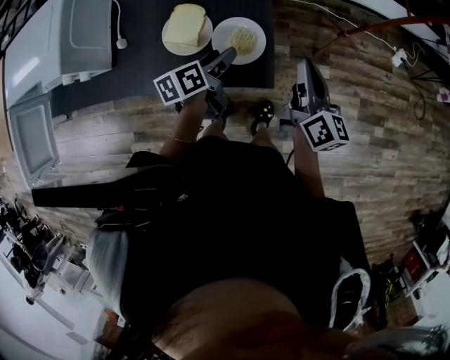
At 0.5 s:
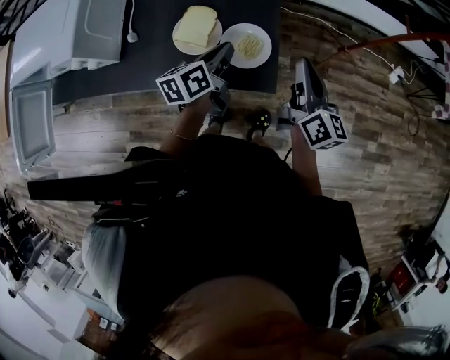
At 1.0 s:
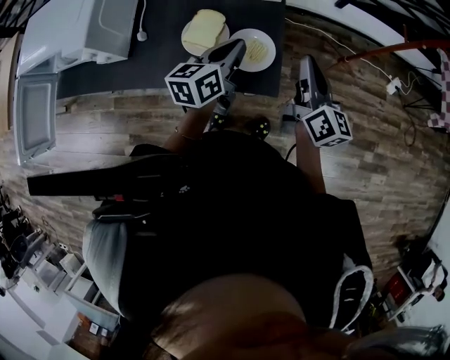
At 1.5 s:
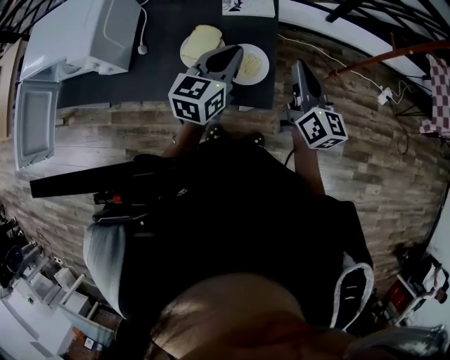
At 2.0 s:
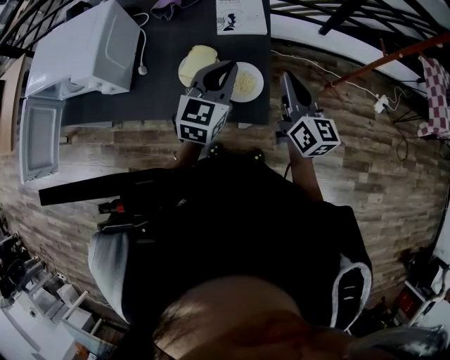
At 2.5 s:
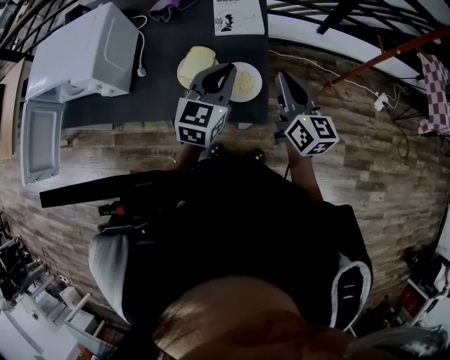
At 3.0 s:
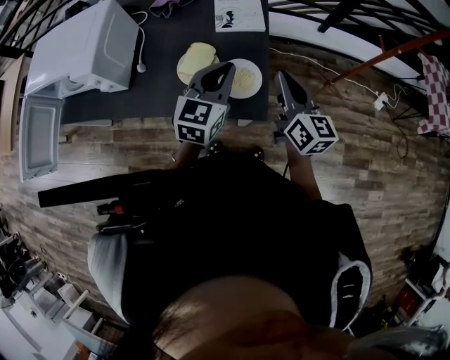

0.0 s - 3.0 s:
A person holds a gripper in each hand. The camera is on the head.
0.0 s - 1.5 s: The right gripper moves upward, roughly 5 cm; the left gripper moves upward, roughly 15 cm, rotates around the line of its fingers by approximately 40 degrees, clockwise from behind, and closes.
1.5 s - 3.0 s: The grippers stay close to where they were, moving slightly.

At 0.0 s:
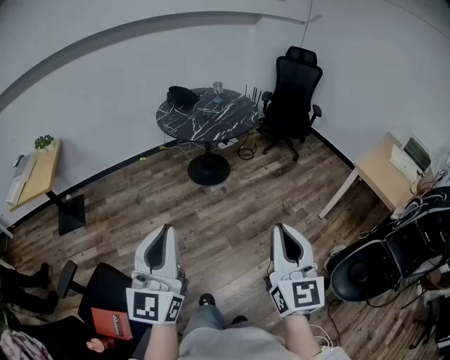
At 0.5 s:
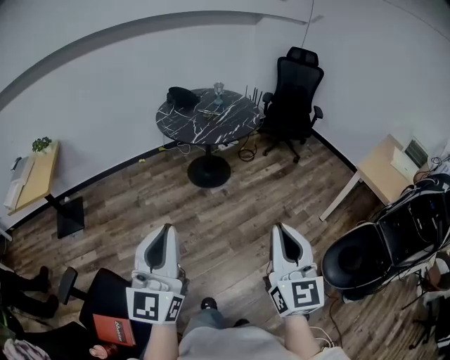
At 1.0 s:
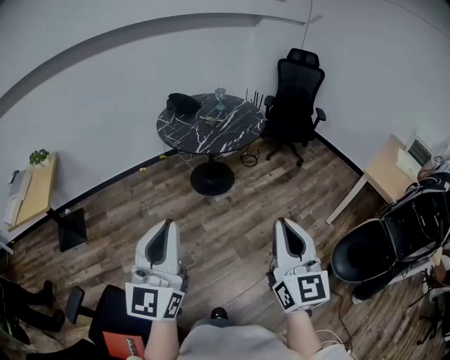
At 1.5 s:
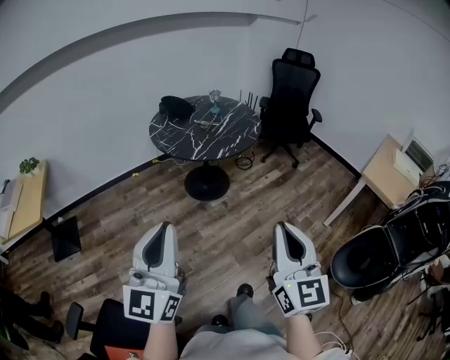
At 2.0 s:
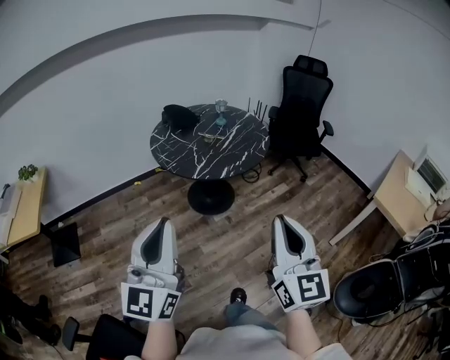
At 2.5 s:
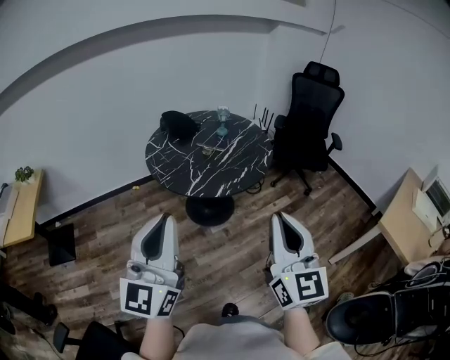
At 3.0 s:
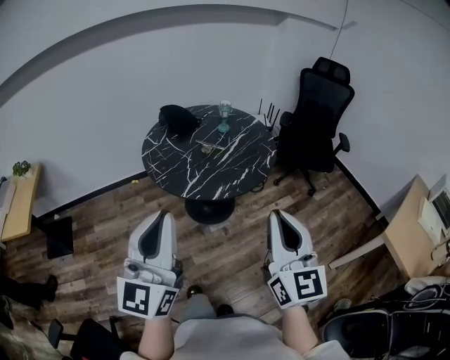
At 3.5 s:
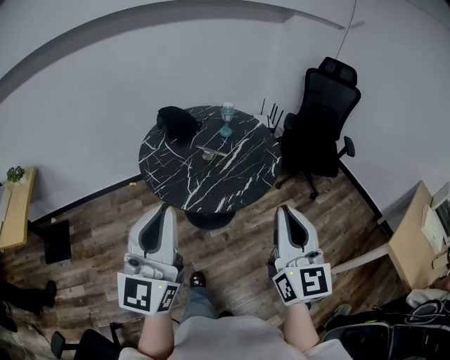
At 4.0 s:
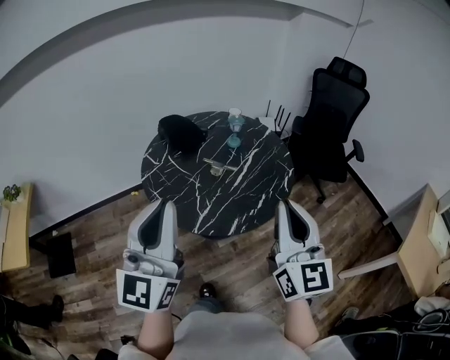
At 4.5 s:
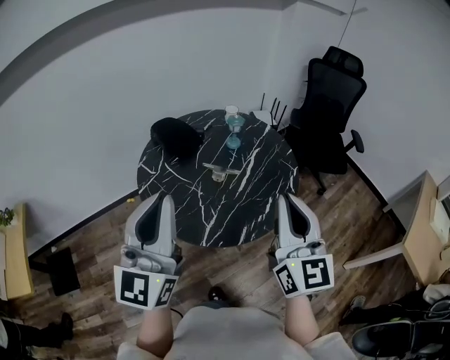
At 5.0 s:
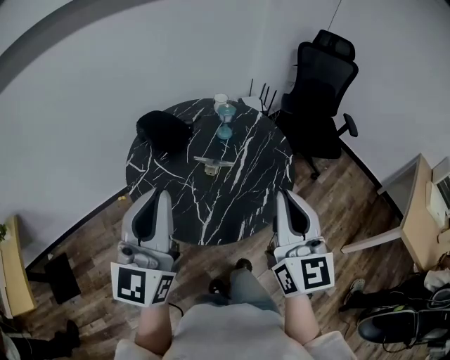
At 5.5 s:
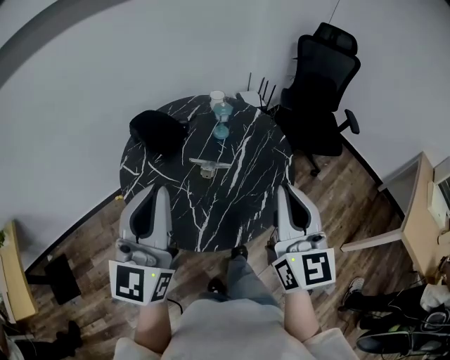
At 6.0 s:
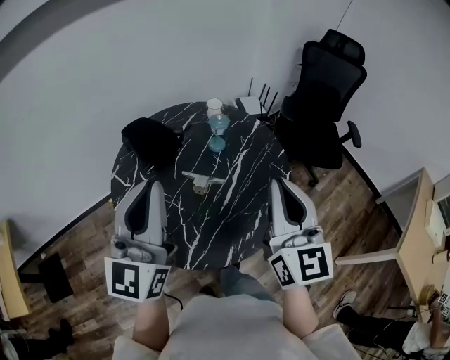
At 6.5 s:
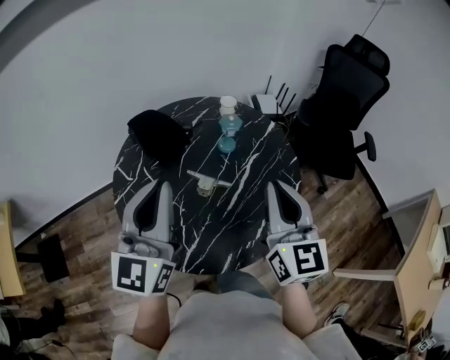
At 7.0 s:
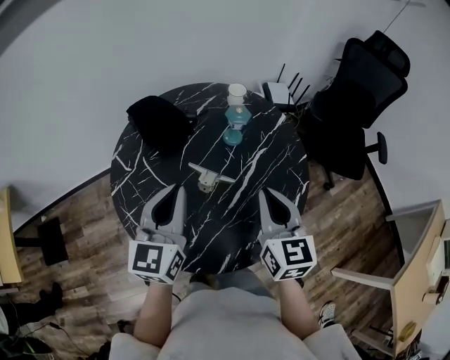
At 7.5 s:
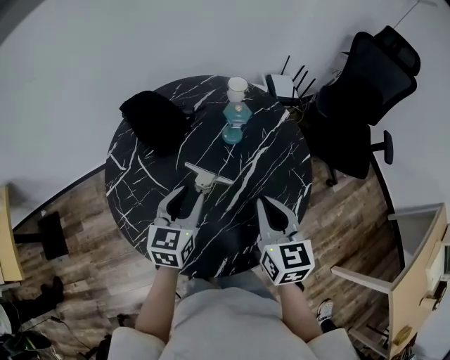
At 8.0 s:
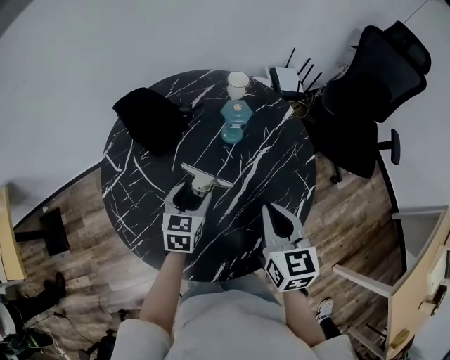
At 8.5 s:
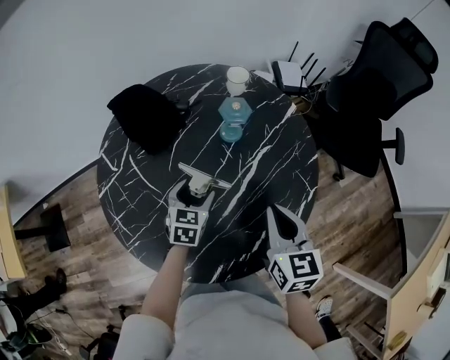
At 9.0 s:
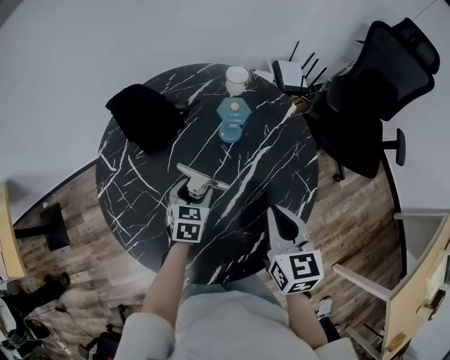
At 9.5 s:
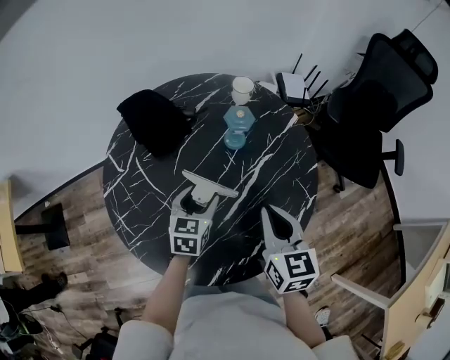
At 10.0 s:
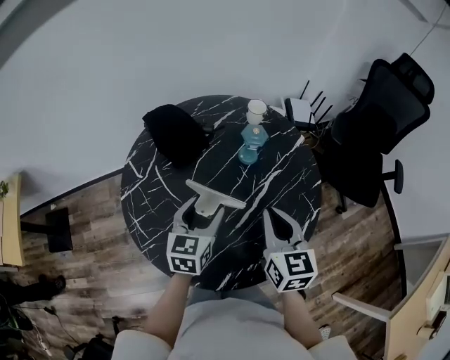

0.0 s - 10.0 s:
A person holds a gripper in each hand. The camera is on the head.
0.0 s - 2.0 s: The two grippers go about 30 cm forward.
2.0 s - 4.0 s: The grippers both shift forward by some 40 cm.
4.0 s - 6.0 s: The two grippers go approximately 25 cm forward.
6.0 s - 8.0 s: The right gripper travels downward and forward by roughly 25 cm, and points its fingers some 30 degrees further downward, while the left gripper travels downward and forward by approximately 40 cm, tips its fingers downward by roughly 50 degrees, and opens.
8.0 s - 10.0 s: The left gripper shifts about 10 cm upward.

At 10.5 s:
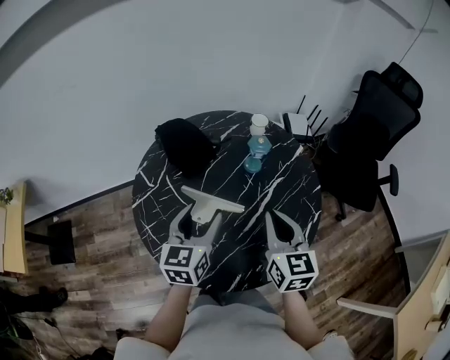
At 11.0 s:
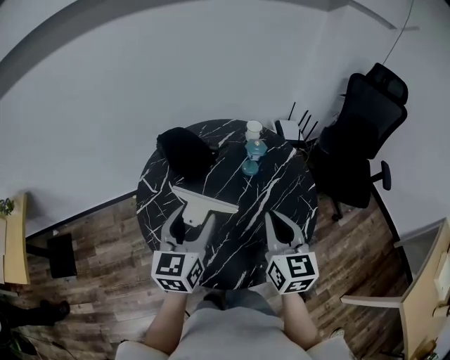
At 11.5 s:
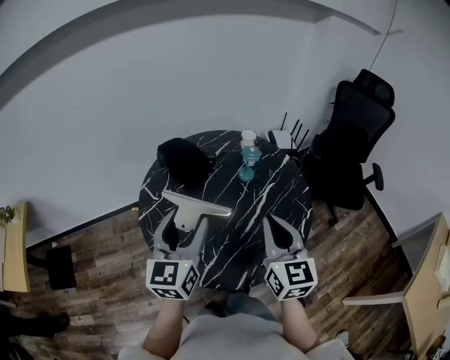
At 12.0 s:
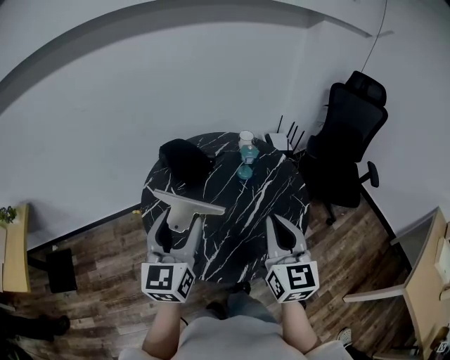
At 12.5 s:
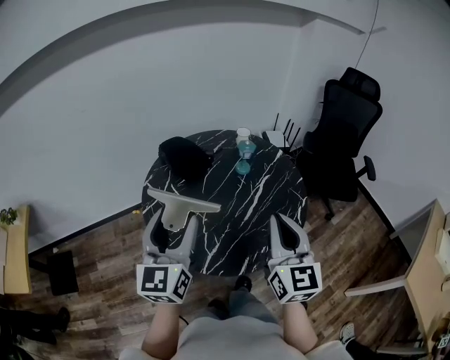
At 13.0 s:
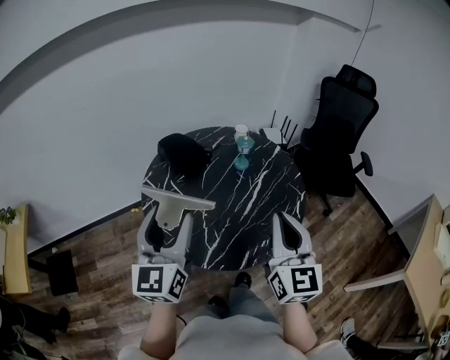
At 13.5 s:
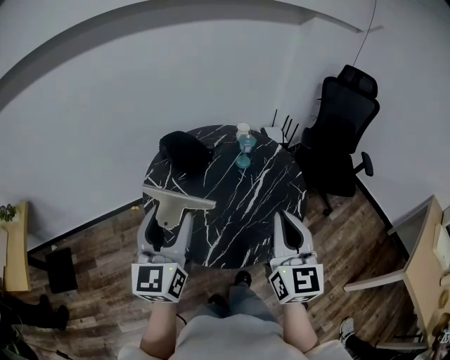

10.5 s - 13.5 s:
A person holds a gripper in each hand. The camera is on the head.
10.5 s - 12.0 s: The right gripper is displaced backward and upward by approximately 15 cm; the left gripper heads upward, backward and to the left, covering roughly 20 cm.
12.0 s - 13.5 s: The two grippers go approximately 5 cm backward.

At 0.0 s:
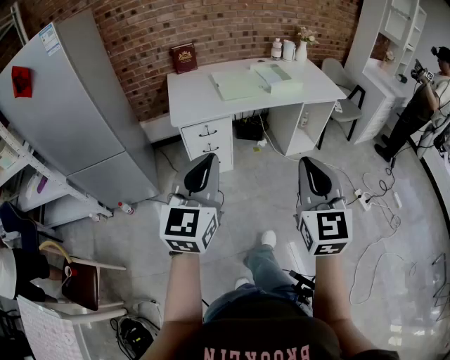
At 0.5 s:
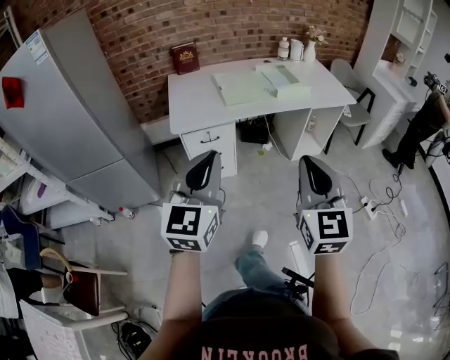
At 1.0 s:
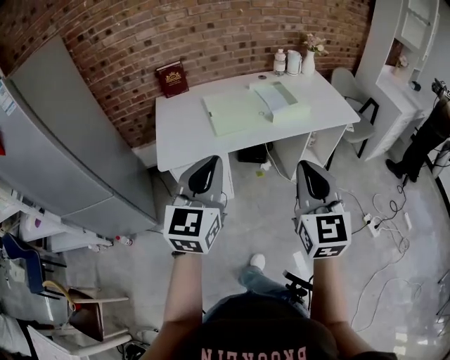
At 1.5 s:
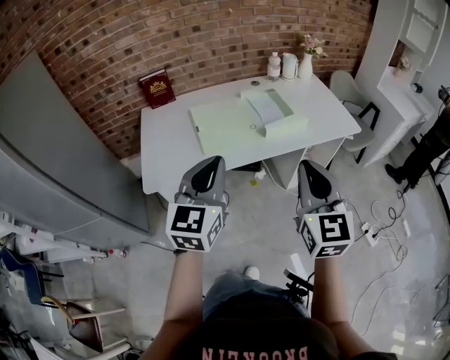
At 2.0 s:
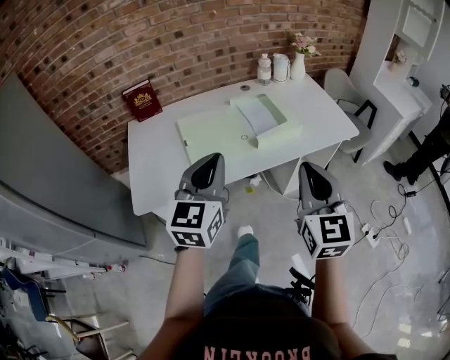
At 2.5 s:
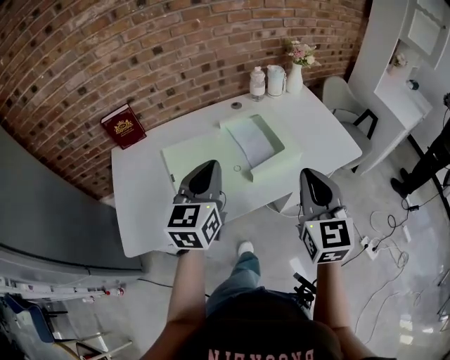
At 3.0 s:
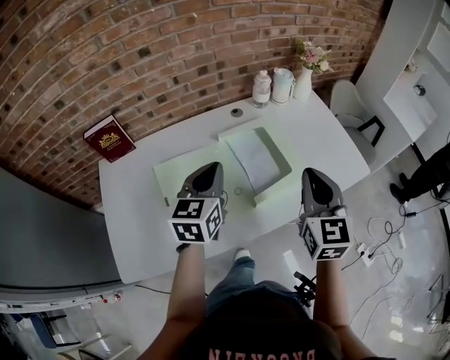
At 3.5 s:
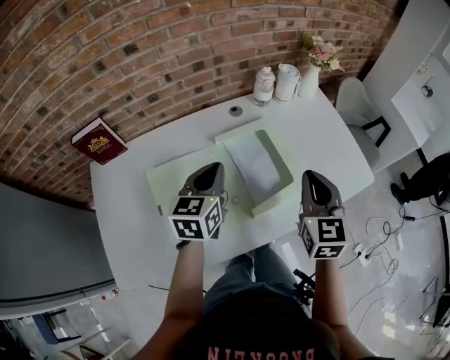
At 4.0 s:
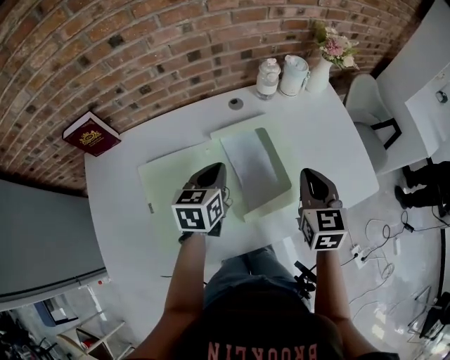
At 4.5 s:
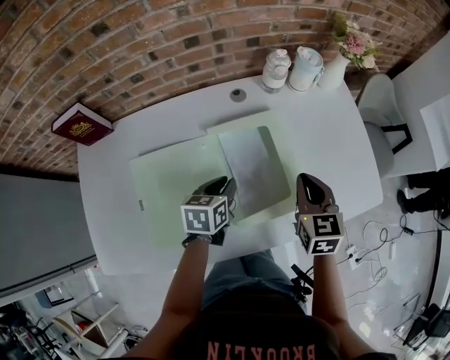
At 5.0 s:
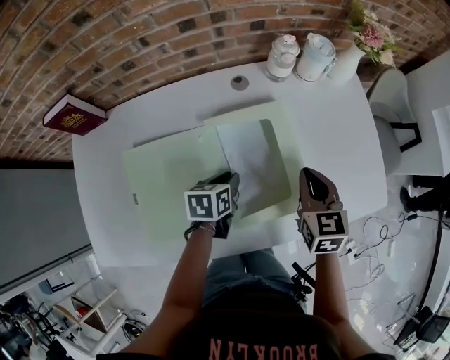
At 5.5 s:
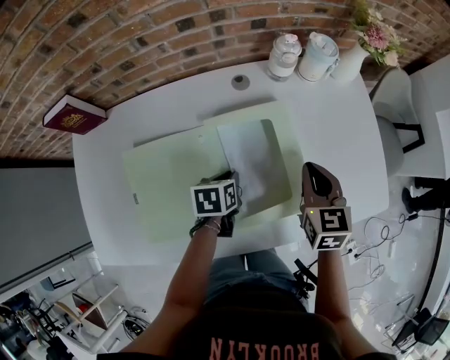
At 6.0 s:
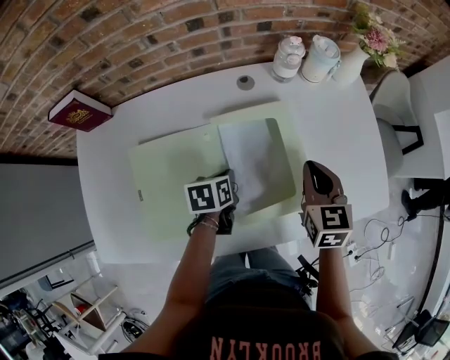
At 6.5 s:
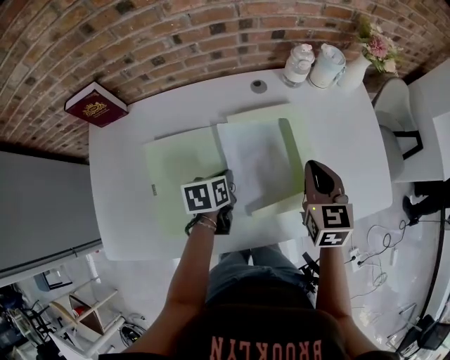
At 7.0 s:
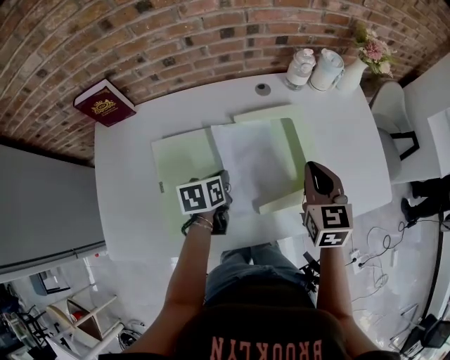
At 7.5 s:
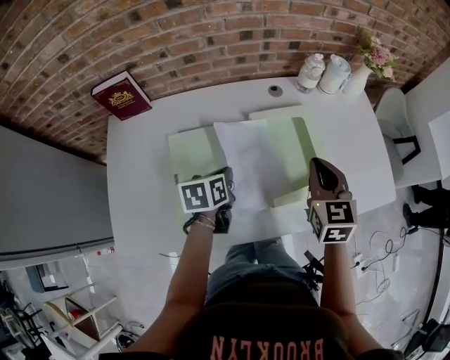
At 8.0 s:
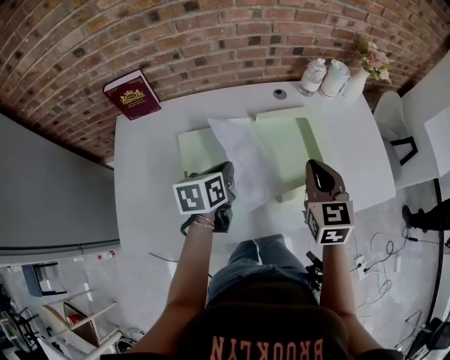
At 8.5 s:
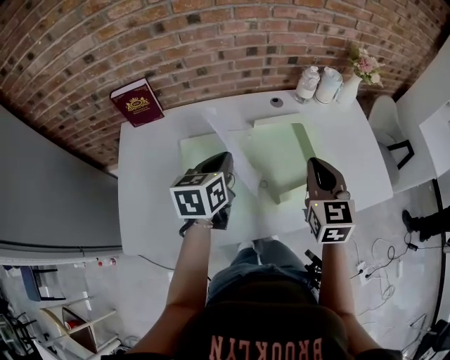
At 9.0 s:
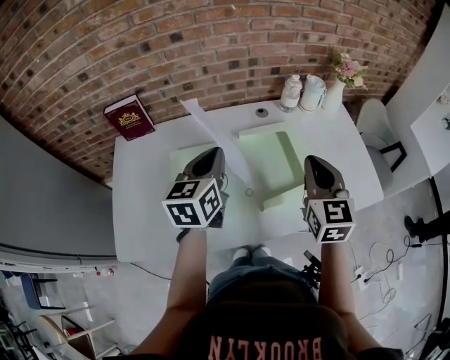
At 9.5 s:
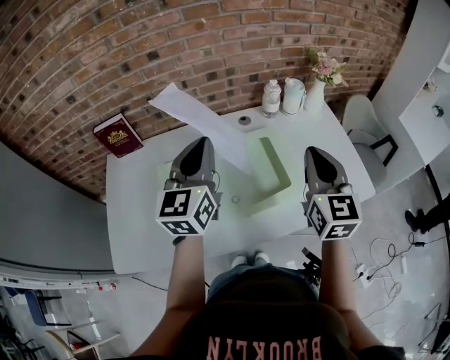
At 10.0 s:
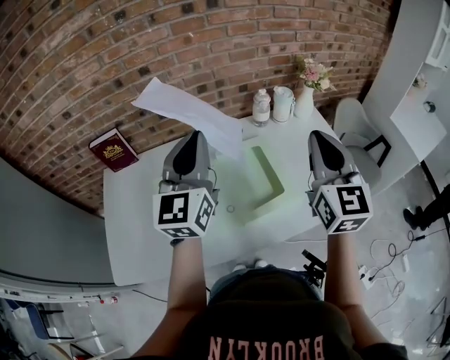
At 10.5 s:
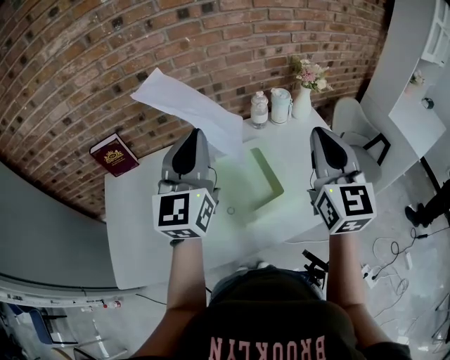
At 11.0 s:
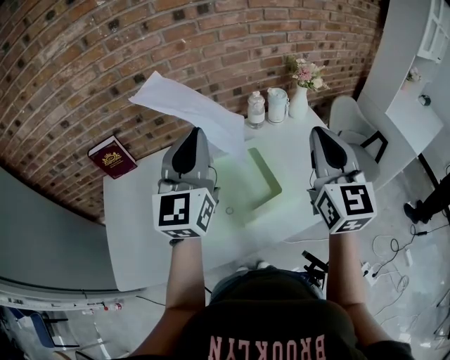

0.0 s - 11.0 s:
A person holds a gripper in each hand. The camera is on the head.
0.0 s - 2.0 s: Both grippers are carried forward, some 50 cm.
2.0 s - 3.5 s: Both grippers move forward, some 35 cm. The left gripper rotates roughly 20 degrees.
3.5 s - 5.5 s: The right gripper shifts approximately 20 cm downward and forward, and turns by about 20 degrees; the left gripper shifts about 20 cm downward, and tips its fingers downward by roughly 40 degrees.
5.5 s - 7.5 s: The left gripper shifts roughly 15 cm to the left, upward and backward. Meanwhile the right gripper moves to the left, backward and upward, approximately 15 cm.
7.5 s - 9.0 s: The left gripper moves upward, about 20 cm, and rotates some 40 degrees, while the right gripper shifts some 10 cm upward.
9.0 s - 11.0 s: The grippers both shift upward and to the right by some 15 cm. The right gripper changes its angle by approximately 20 degrees. The left gripper rotates approximately 40 degrees.
